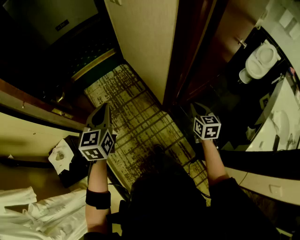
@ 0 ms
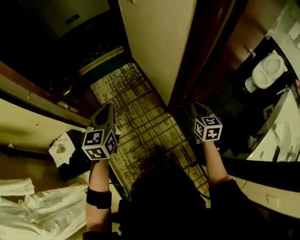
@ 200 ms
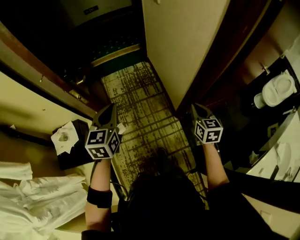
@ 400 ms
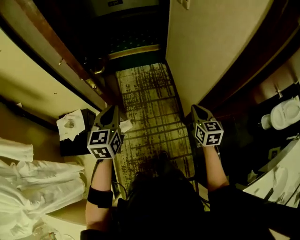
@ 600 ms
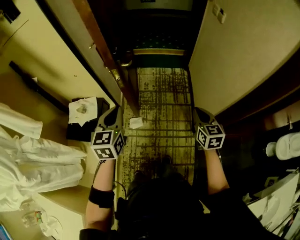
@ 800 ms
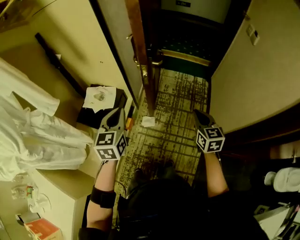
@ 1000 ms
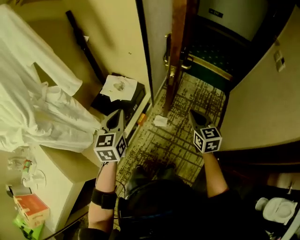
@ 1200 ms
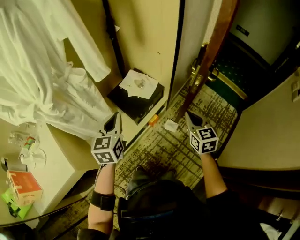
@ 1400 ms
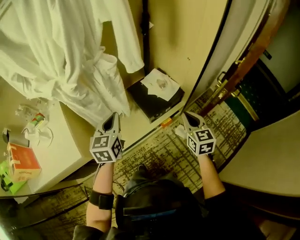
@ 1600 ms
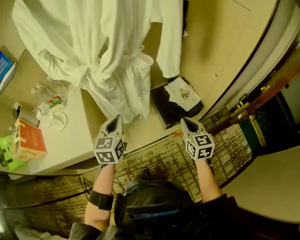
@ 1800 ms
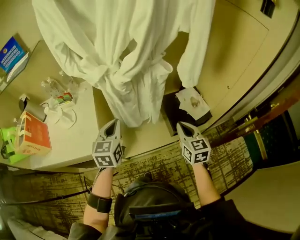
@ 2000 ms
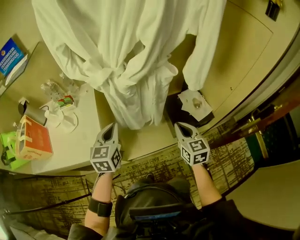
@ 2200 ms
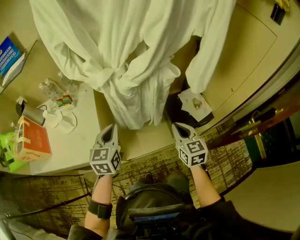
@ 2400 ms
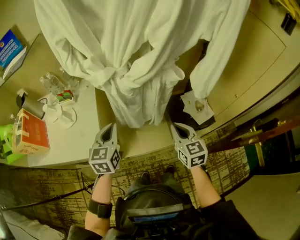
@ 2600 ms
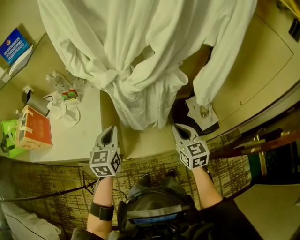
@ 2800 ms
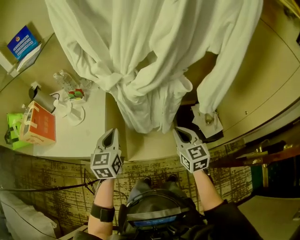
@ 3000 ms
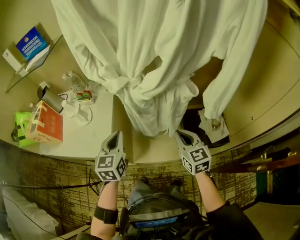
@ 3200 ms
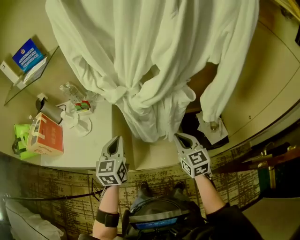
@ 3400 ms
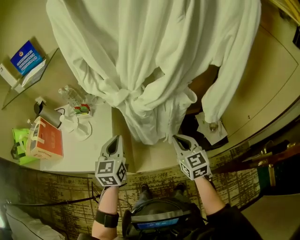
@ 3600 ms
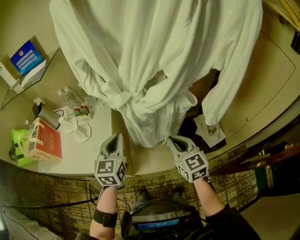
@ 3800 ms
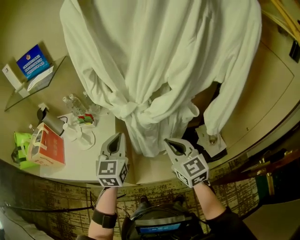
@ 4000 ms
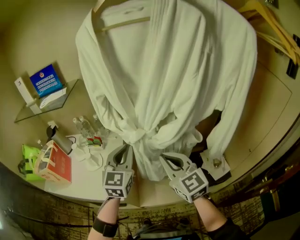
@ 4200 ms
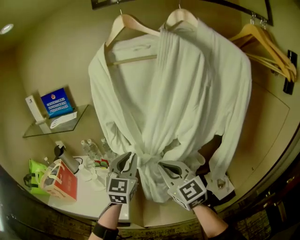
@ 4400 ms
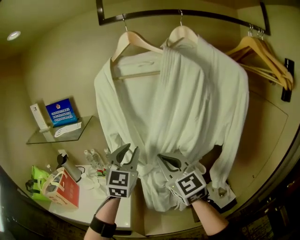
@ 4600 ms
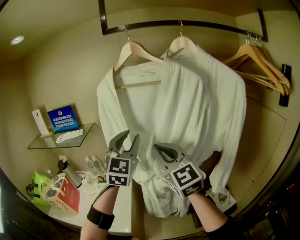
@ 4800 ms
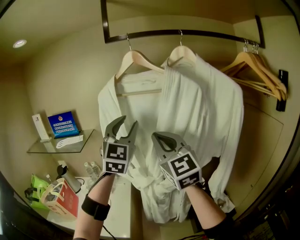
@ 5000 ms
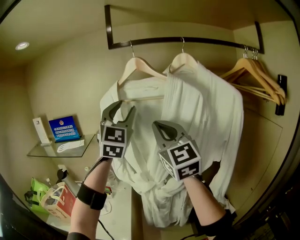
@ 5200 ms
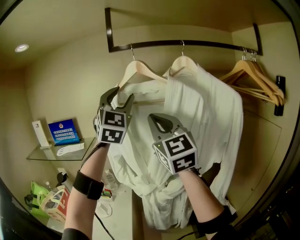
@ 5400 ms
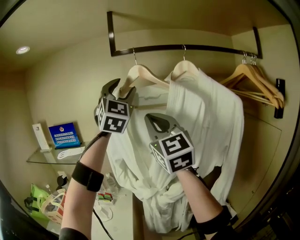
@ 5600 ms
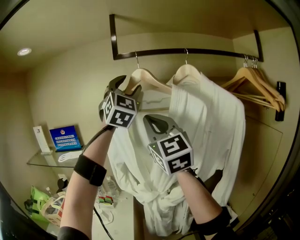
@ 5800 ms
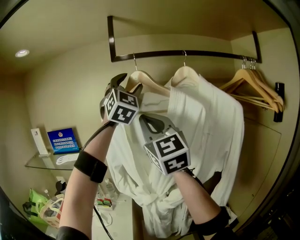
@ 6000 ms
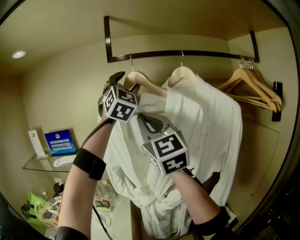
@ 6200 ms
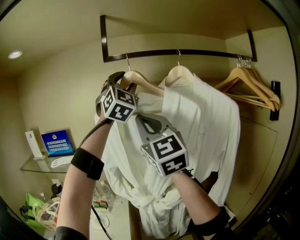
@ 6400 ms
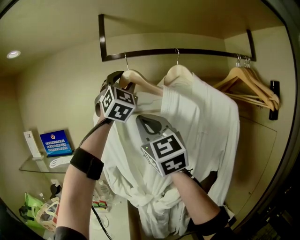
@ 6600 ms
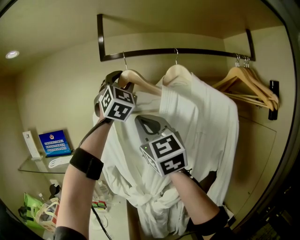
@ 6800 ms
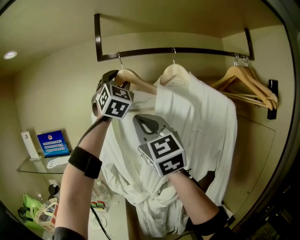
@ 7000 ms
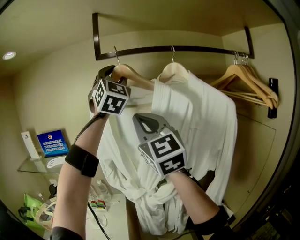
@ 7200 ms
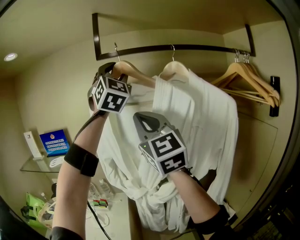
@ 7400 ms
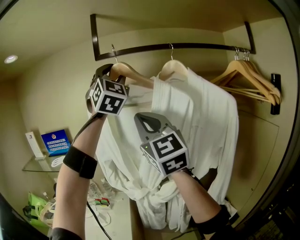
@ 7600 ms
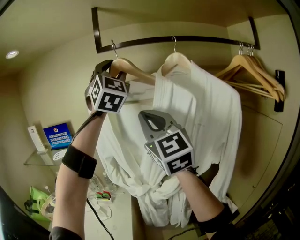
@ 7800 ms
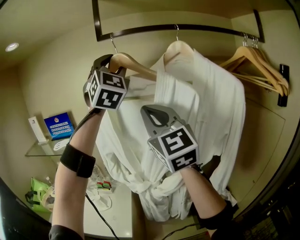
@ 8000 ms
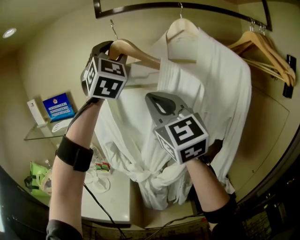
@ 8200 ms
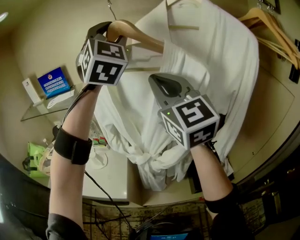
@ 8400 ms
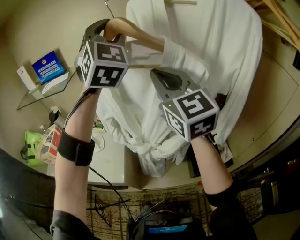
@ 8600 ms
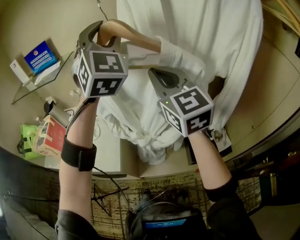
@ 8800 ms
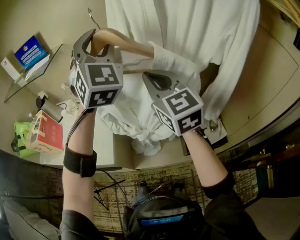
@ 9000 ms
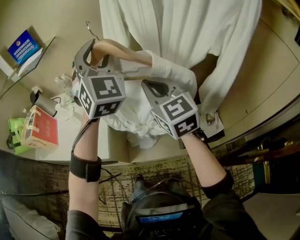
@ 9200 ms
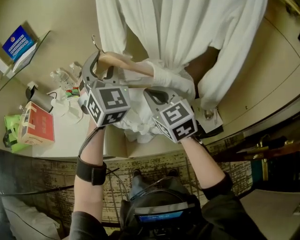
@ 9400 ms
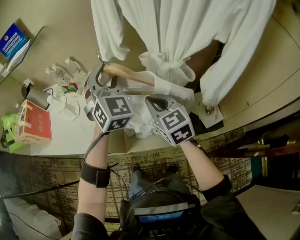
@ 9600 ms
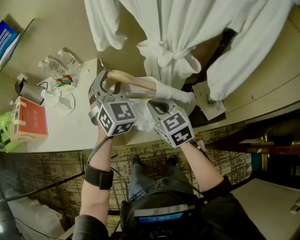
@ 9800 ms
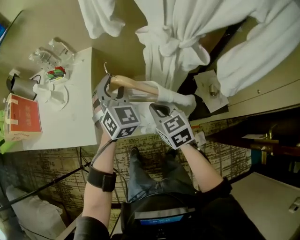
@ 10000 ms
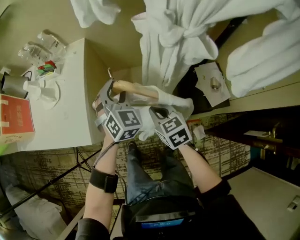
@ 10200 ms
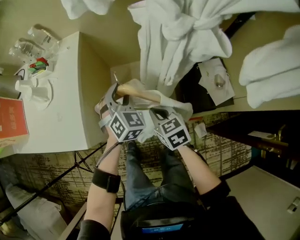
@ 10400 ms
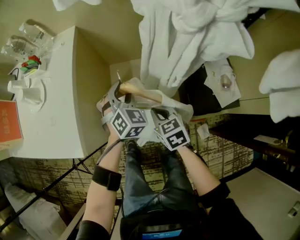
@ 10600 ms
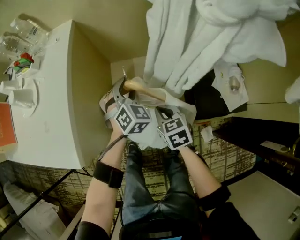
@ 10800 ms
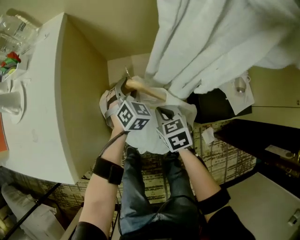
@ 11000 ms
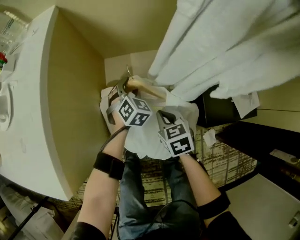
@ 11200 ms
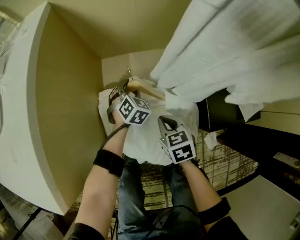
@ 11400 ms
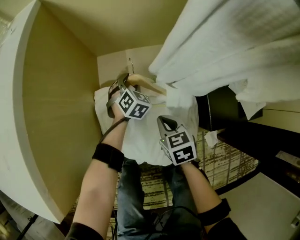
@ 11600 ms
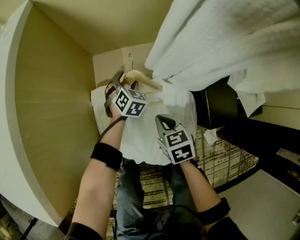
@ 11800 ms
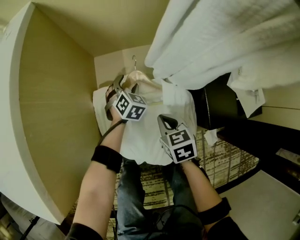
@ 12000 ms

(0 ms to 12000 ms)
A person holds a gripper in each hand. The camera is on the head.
0 ms - 1600 ms: The left gripper ends up roughly 60 cm from where it was, and turns by roughly 80 degrees. Meanwhile the right gripper shifts by approximately 70 cm, and turns by some 90 degrees.
1600 ms - 3000 ms: The left gripper moves some 25 cm, and turns by roughly 30 degrees. The right gripper changes place by about 30 cm, and swivels approximately 40 degrees.
3000 ms - 4400 ms: The left gripper shifts some 25 cm upward and forward, and swivels about 30 degrees. The right gripper moves upward and to the left, roughly 30 cm, and turns by roughly 30 degrees.
4400 ms - 6000 ms: Both grippers move upward, some 40 cm. The left gripper rotates approximately 40 degrees, and opens. The right gripper swivels some 30 degrees.
6000 ms - 7600 ms: There are only small adjustments of the grippers.
7600 ms - 9000 ms: The grippers both shift downward by some 30 cm. The right gripper turns by about 30 degrees.
9000 ms - 10400 ms: The two grippers go approximately 50 cm downward. The left gripper points its fingers approximately 40 degrees further downward, while the right gripper tips its fingers downward by approximately 40 degrees.
10400 ms - 12000 ms: Both grippers move downward, approximately 35 cm.

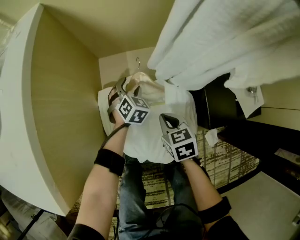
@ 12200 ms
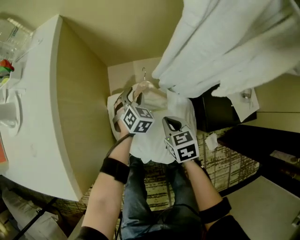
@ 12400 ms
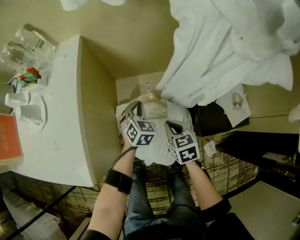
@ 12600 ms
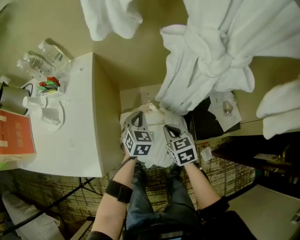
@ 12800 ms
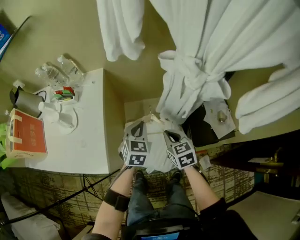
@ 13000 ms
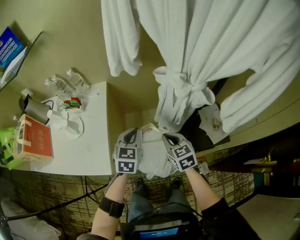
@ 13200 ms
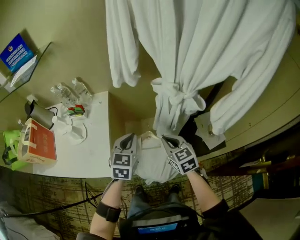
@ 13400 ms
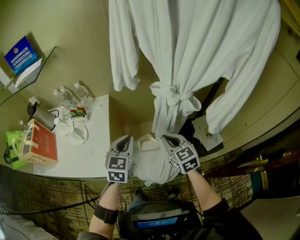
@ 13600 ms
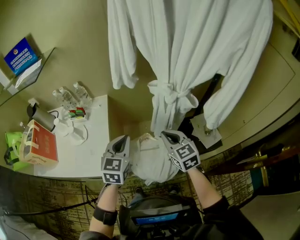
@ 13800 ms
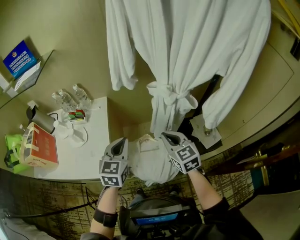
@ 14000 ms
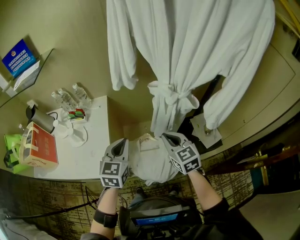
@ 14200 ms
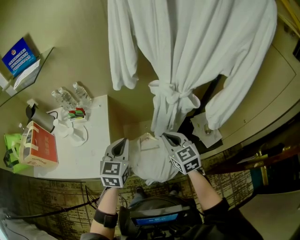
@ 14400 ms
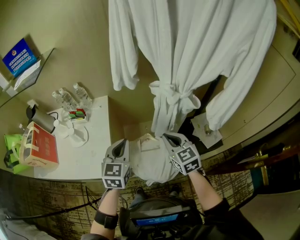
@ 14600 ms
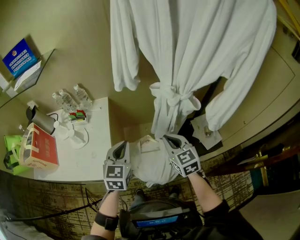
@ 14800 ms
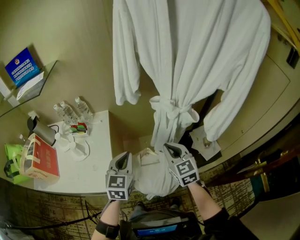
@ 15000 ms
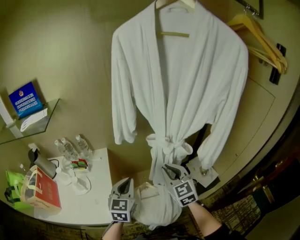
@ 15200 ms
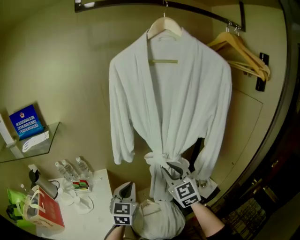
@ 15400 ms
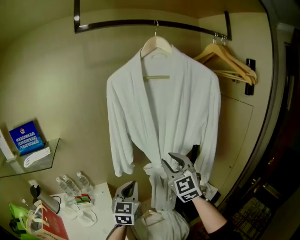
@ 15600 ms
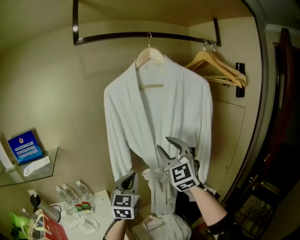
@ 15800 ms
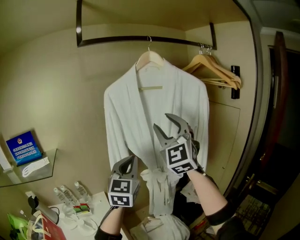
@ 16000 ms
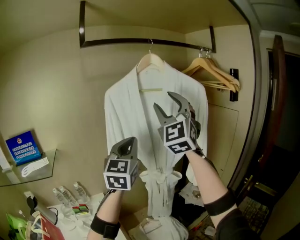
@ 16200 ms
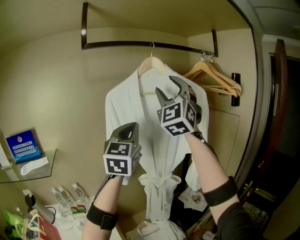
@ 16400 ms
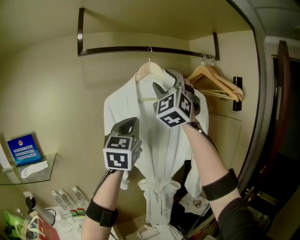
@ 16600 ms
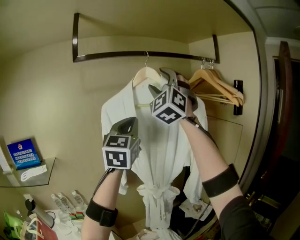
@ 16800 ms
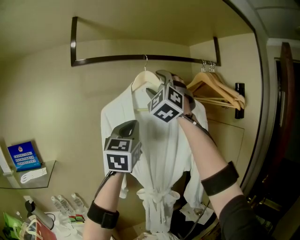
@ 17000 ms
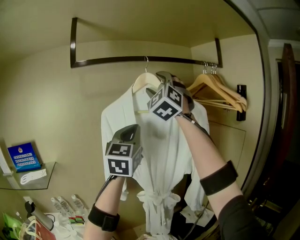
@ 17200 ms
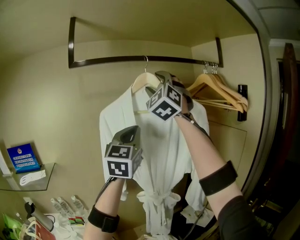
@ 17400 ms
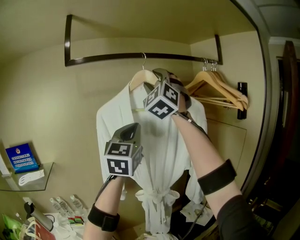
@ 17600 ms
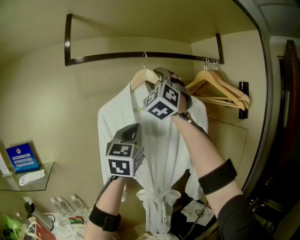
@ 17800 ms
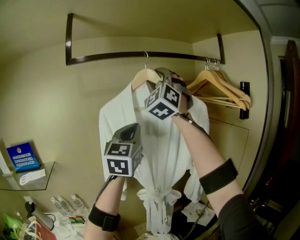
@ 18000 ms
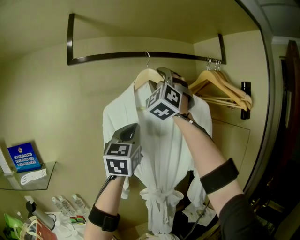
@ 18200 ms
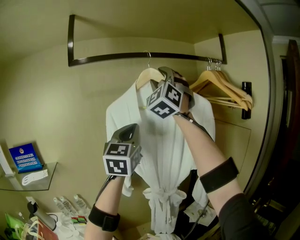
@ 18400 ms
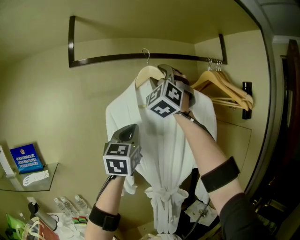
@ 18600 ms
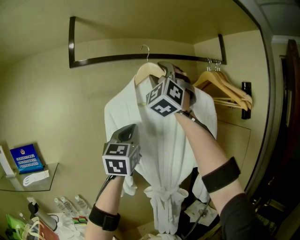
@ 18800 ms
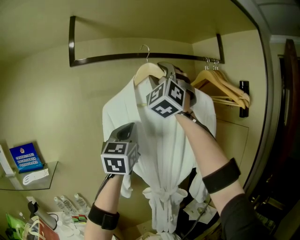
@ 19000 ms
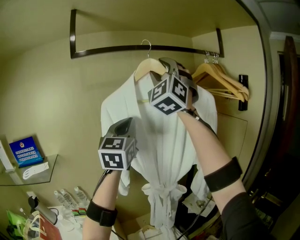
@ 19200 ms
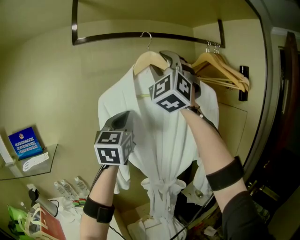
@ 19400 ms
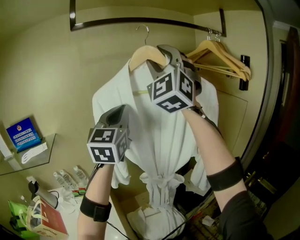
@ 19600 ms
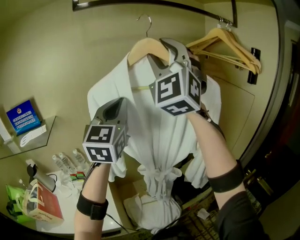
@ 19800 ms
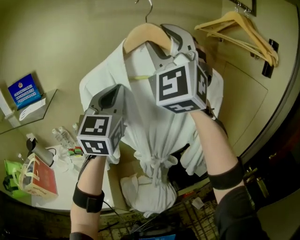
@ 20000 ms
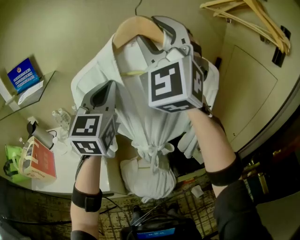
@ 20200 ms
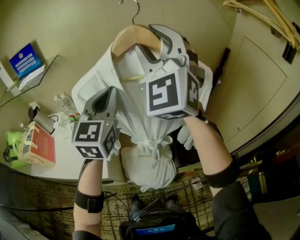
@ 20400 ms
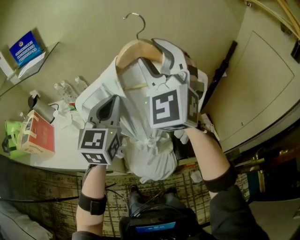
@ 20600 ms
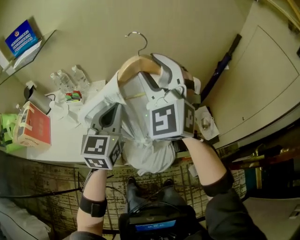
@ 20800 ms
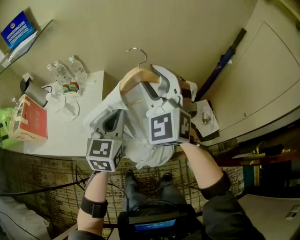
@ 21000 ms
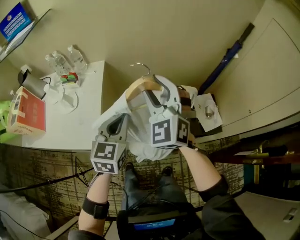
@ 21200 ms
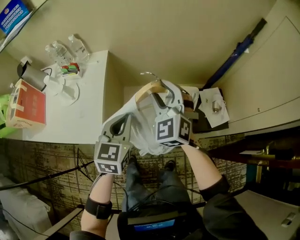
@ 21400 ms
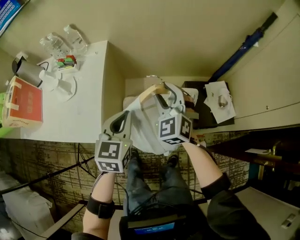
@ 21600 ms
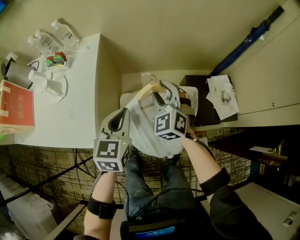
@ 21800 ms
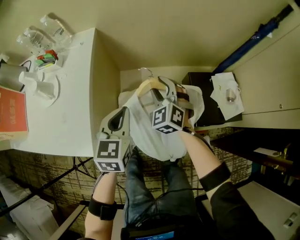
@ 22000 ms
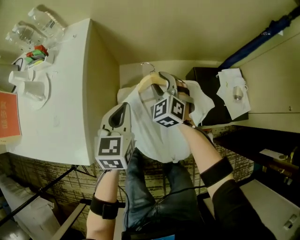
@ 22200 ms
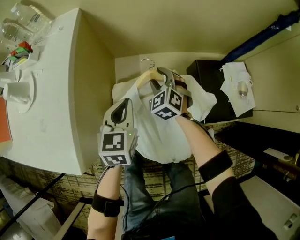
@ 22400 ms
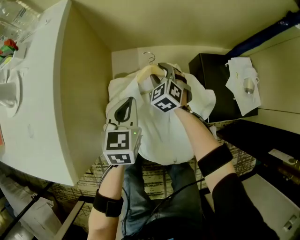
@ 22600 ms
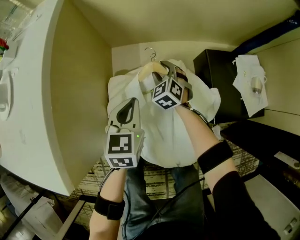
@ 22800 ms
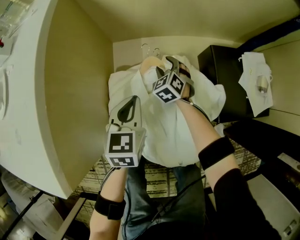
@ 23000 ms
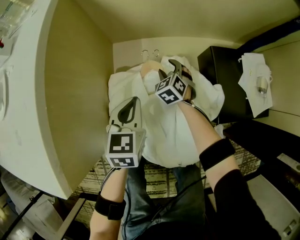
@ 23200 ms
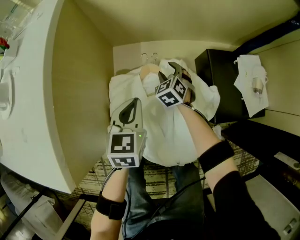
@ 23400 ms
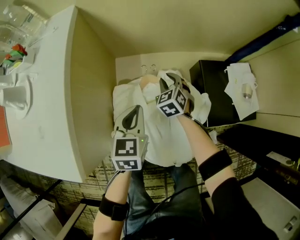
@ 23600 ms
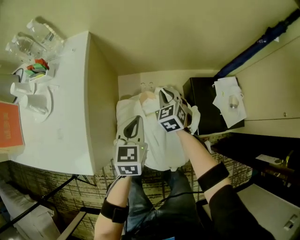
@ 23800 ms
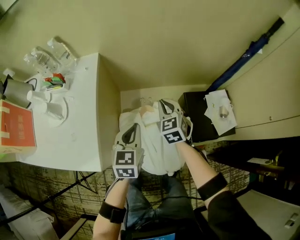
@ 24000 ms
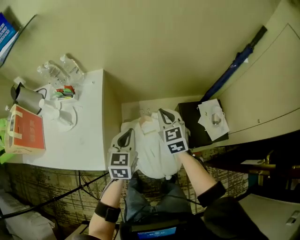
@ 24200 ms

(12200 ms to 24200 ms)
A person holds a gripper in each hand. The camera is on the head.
12200 ms - 13800 ms: Both grippers move upward, approximately 60 cm. The right gripper turns by about 30 degrees. Meanwhile the left gripper rotates about 40 degrees, and closes its fingers.
13800 ms - 15200 ms: The right gripper heads upward, covering some 10 cm.
15200 ms - 16600 ms: The two grippers go roughly 50 cm upward. The left gripper angles its fingers upward, by some 30 degrees; the right gripper tips its fingers upward by roughly 40 degrees, and opens.
16600 ms - 18200 ms: The left gripper goes some 5 cm forward. Meanwhile the right gripper travels forward by approximately 10 cm.
18200 ms - 19800 ms: The right gripper shifts about 15 cm backward and downward. Meanwhile the left gripper heads backward, downward and to the left, covering about 15 cm.
19800 ms - 21200 ms: The grippers both shift downward by roughly 50 cm. The right gripper angles its fingers downward, by some 40 degrees. The left gripper angles its fingers downward, by approximately 30 degrees.
21200 ms - 22600 ms: The left gripper moves downward, approximately 35 cm. Meanwhile the right gripper goes some 60 cm downward, and angles its fingers downward, by about 30 degrees.
22600 ms - 24200 ms: Both grippers travel together upward, some 30 cm. The right gripper changes its angle by approximately 30 degrees, and closes.
